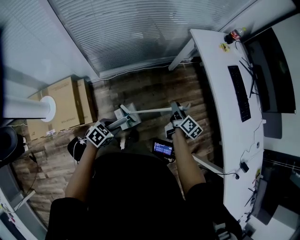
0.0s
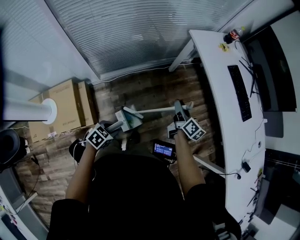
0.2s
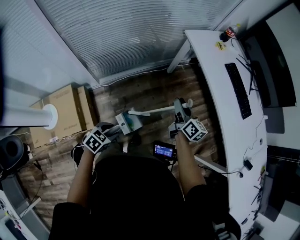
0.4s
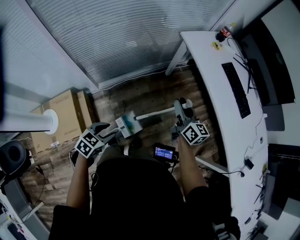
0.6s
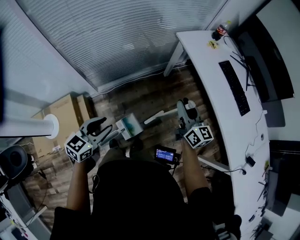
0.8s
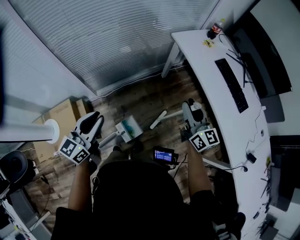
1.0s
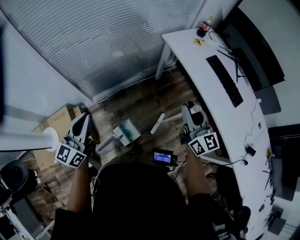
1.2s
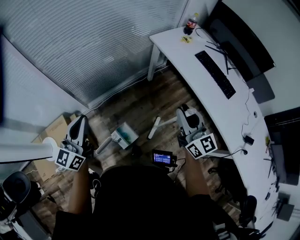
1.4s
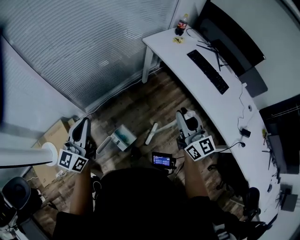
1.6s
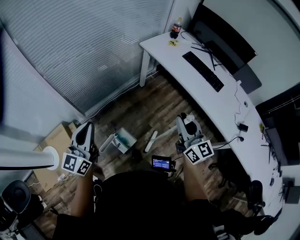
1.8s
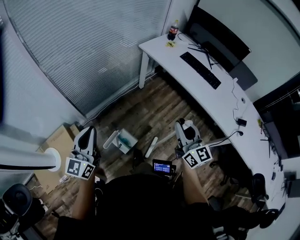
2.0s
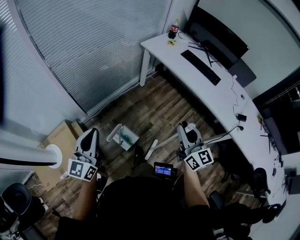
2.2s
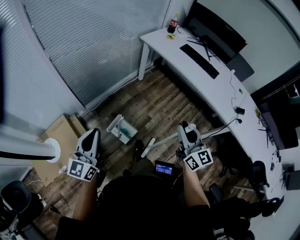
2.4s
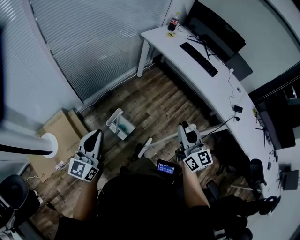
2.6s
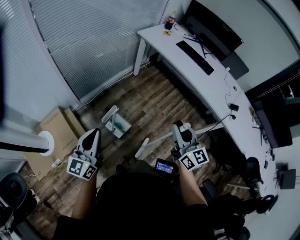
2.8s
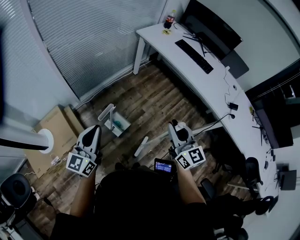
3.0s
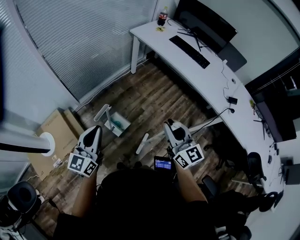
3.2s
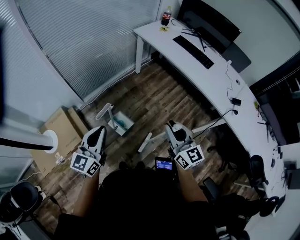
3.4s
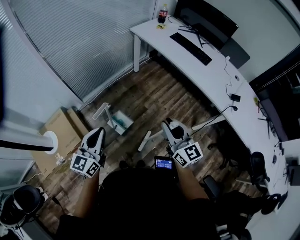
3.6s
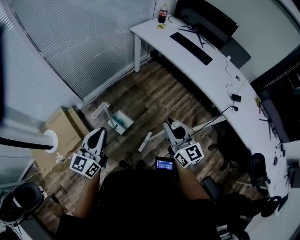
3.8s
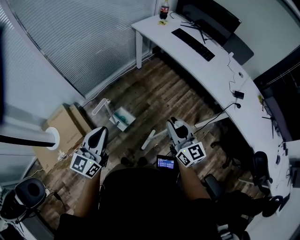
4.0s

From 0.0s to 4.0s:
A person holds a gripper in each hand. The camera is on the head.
From 0.0s to 1.4s: Both grippers move upward, approximately 30 cm. The right gripper twists approximately 50 degrees counterclockwise, seen from behind. Meanwhile the left gripper tips its fingers upward by some 60 degrees, and closes up.
From 1.4s to 2.6s: Both grippers move backward, some 25 cm.
From 2.6s to 4.0s: The left gripper goes about 15 cm to the right. Meanwhile the right gripper is displaced to the right by roughly 5 cm.

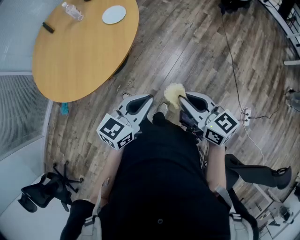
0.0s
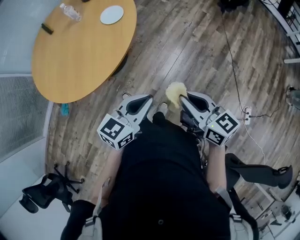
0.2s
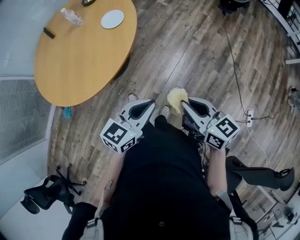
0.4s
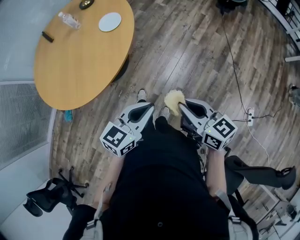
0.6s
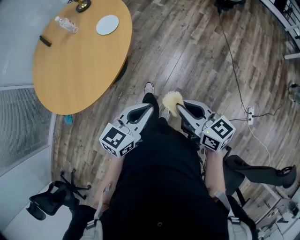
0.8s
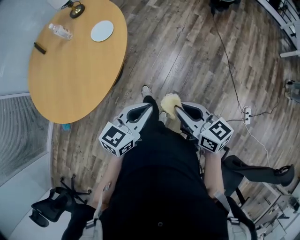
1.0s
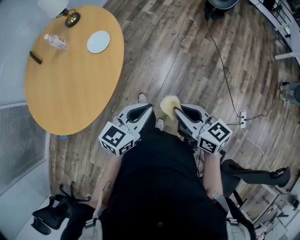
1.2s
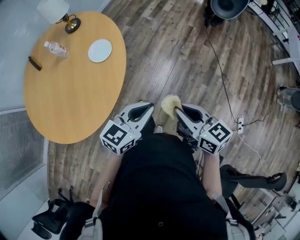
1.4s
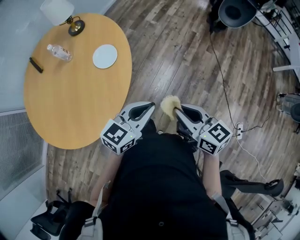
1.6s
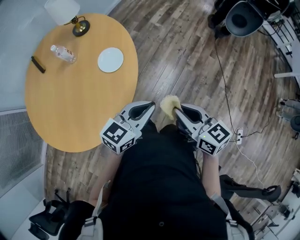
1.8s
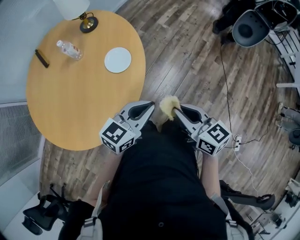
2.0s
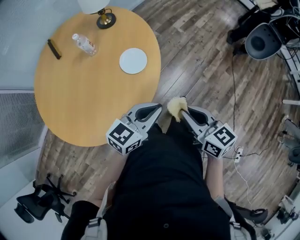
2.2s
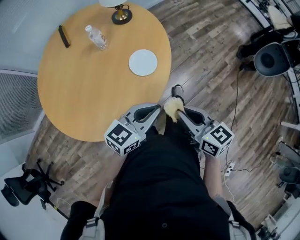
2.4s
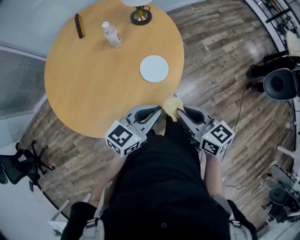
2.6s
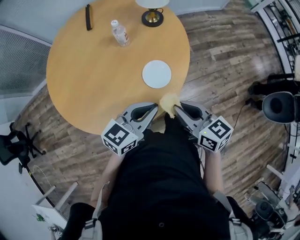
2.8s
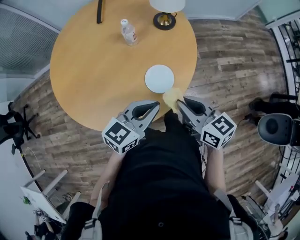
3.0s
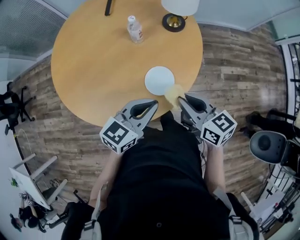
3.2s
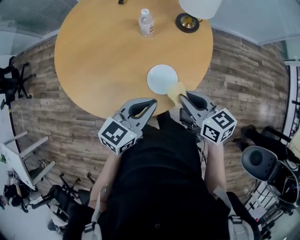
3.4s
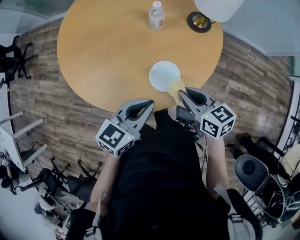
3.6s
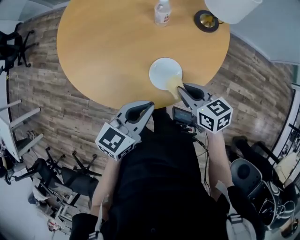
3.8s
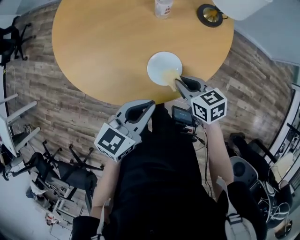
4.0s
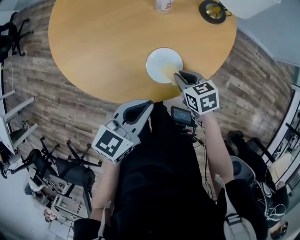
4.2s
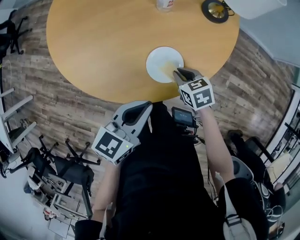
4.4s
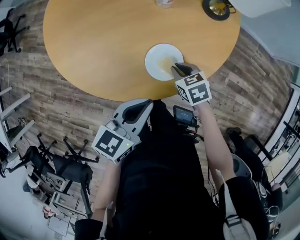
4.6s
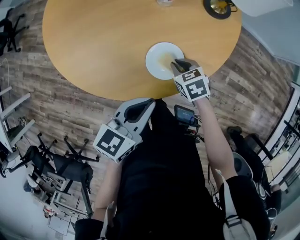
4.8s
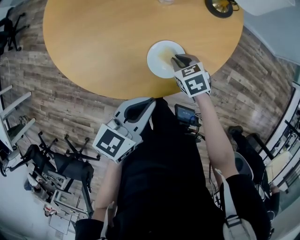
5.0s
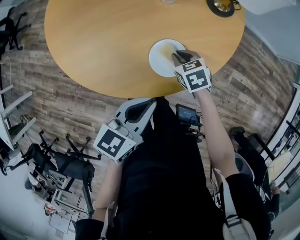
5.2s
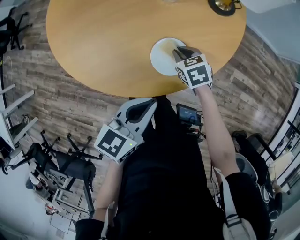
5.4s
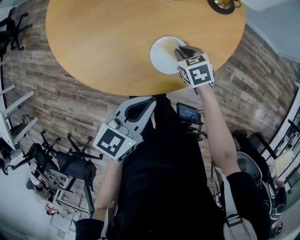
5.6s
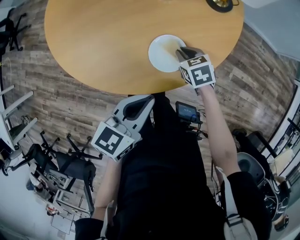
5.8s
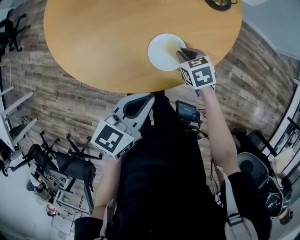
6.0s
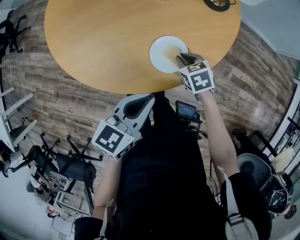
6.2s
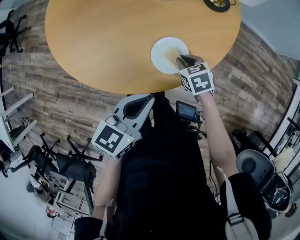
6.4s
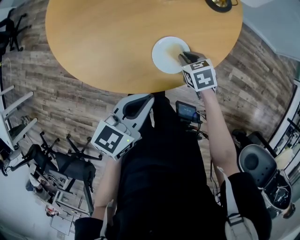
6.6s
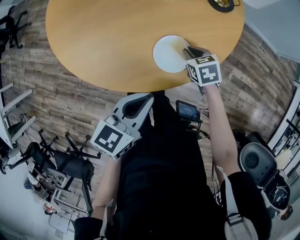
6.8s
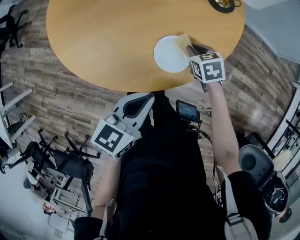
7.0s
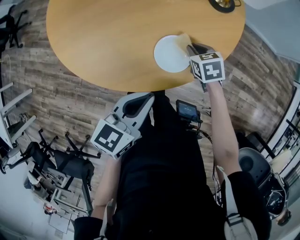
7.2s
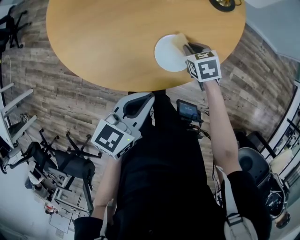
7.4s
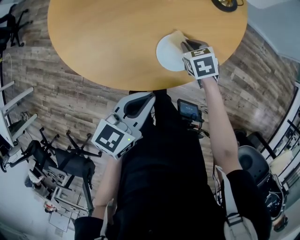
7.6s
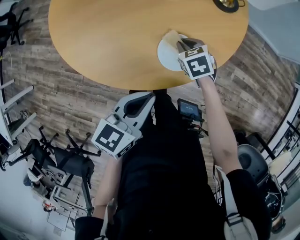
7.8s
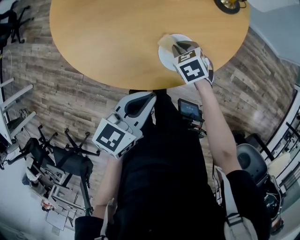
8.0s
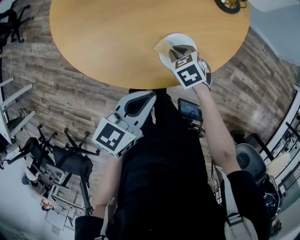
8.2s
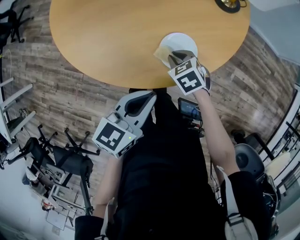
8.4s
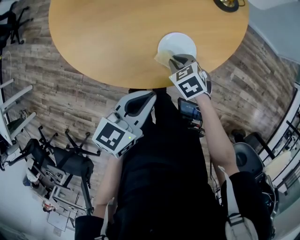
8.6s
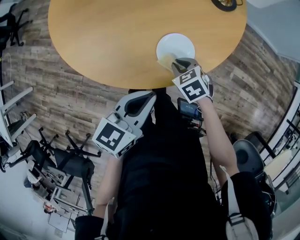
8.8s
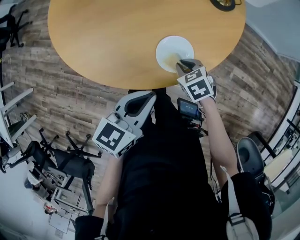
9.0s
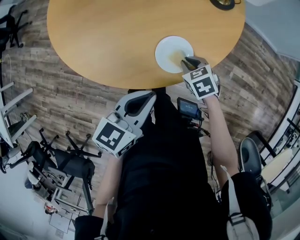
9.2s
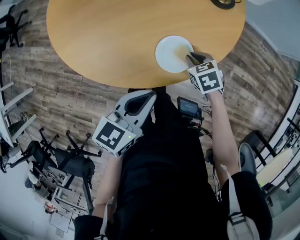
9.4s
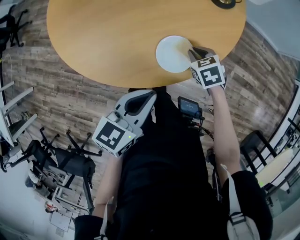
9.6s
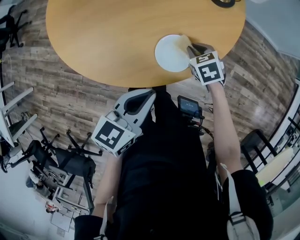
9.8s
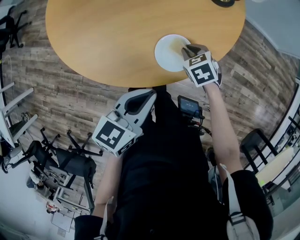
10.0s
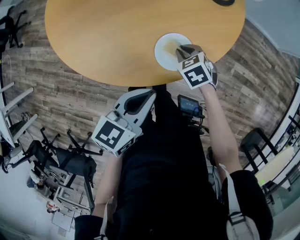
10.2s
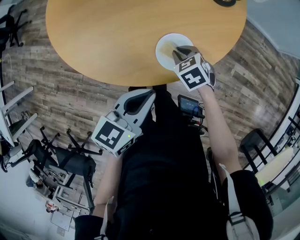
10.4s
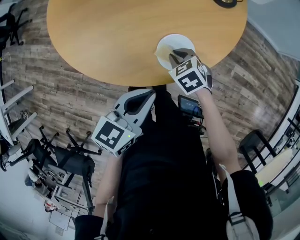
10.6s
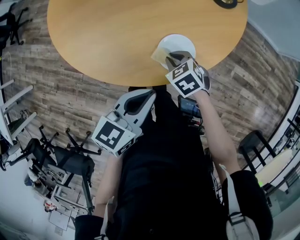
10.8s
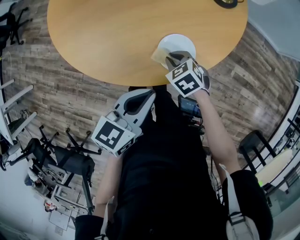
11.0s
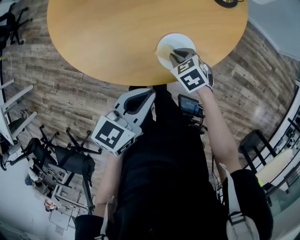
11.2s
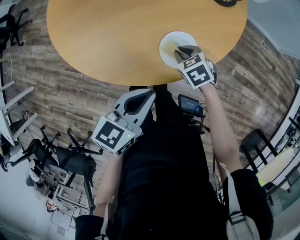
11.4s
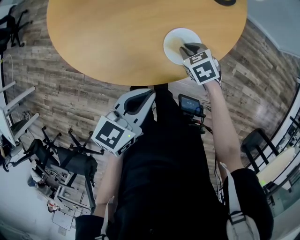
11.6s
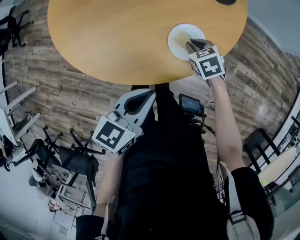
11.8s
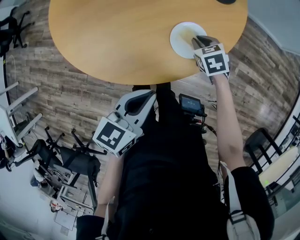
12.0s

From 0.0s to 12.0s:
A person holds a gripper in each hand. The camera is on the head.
From 0.0s to 1.6s: Both grippers move forward, roughly 20 cm.
From 1.6s to 3.0s: The left gripper changes place by roughly 25 cm, and rotates roughly 50 degrees. Meanwhile the right gripper ends up roughly 35 cm from where it was, and rotates some 50 degrees.
From 3.0s to 4.4s: The right gripper shifts approximately 25 cm downward, and angles its fingers downward, by some 40 degrees. The left gripper moves downward, approximately 10 cm, and turns by about 40 degrees.
From 4.4s to 6.0s: The grippers move only a little.
From 6.0s to 7.6s: The grippers move only a little.
From 7.6s to 9.0s: The right gripper goes roughly 10 cm backward.
From 10.4s to 12.0s: The right gripper goes about 5 cm to the right.

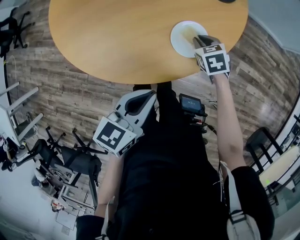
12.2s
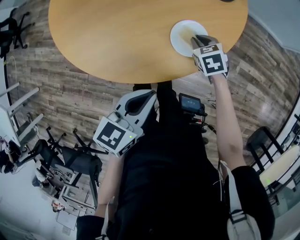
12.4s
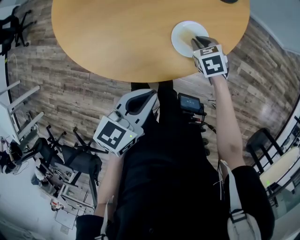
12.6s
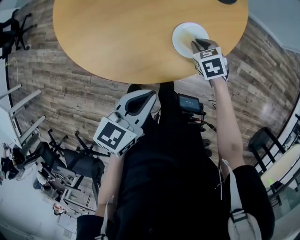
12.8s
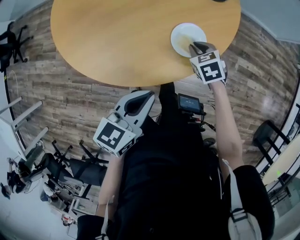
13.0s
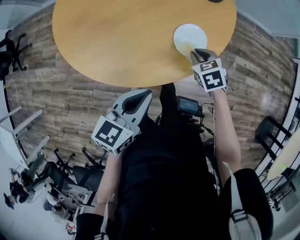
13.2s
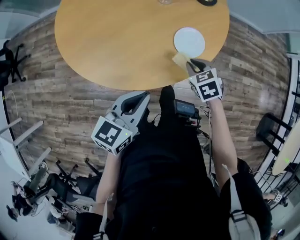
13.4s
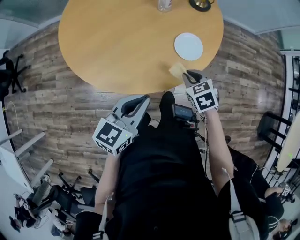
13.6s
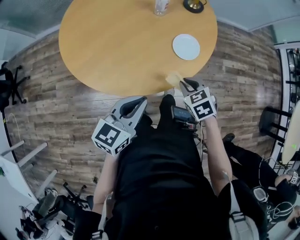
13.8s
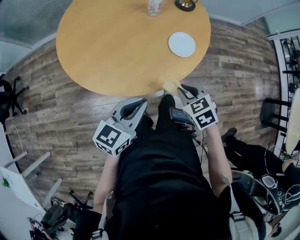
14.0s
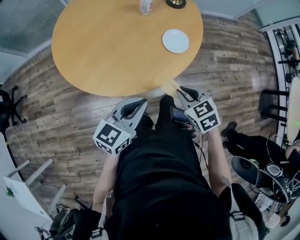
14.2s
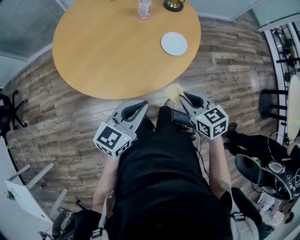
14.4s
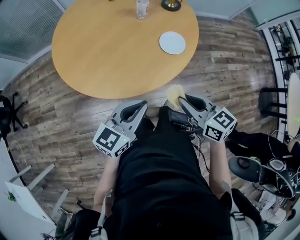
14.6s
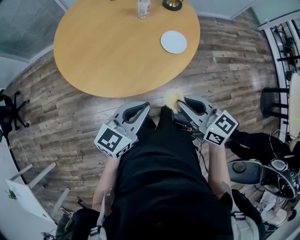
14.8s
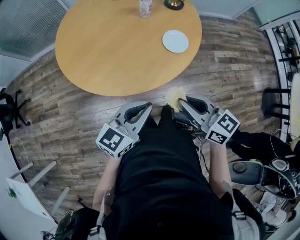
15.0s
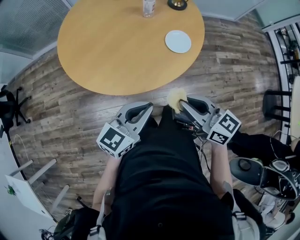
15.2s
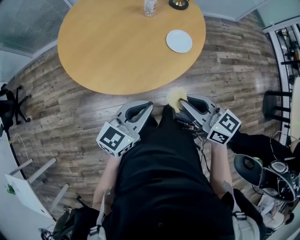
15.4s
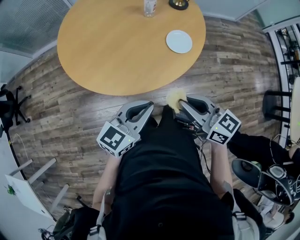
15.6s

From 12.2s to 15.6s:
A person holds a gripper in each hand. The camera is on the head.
From 12.2s to 13.8s: The left gripper heads to the left and backward, covering approximately 20 cm, and turns by roughly 20 degrees. The right gripper travels backward, upward and to the left by approximately 30 cm.
From 13.8s to 15.6s: The left gripper travels backward by about 5 cm, while the right gripper goes roughly 20 cm upward and backward, and points its fingers roughly 40 degrees further upward.

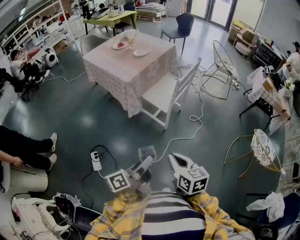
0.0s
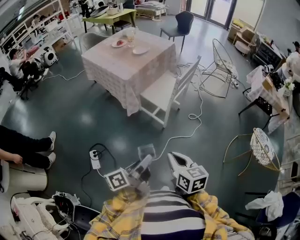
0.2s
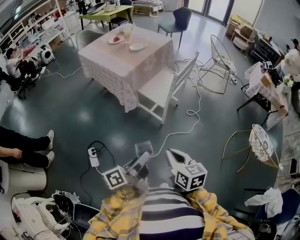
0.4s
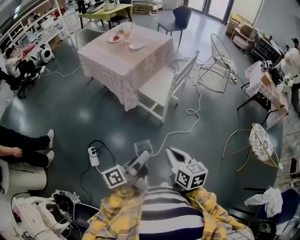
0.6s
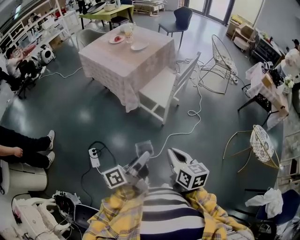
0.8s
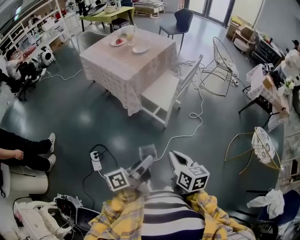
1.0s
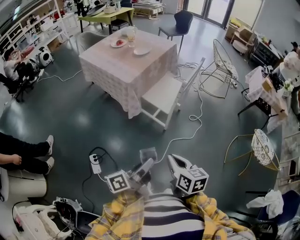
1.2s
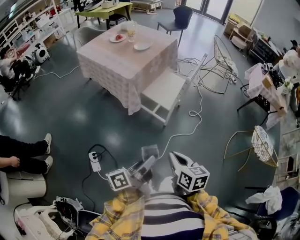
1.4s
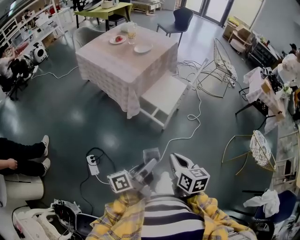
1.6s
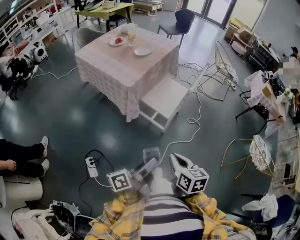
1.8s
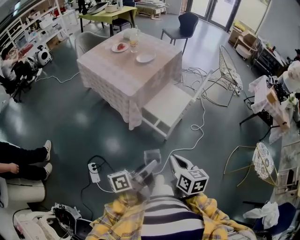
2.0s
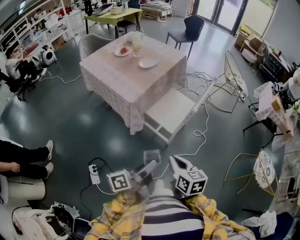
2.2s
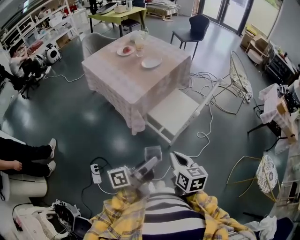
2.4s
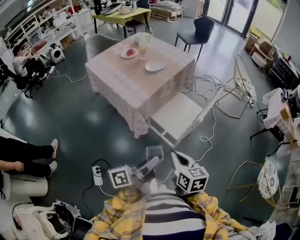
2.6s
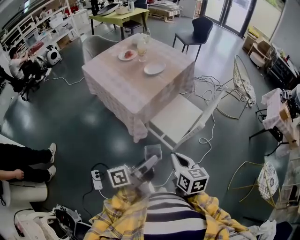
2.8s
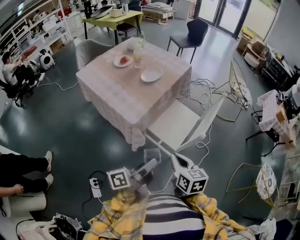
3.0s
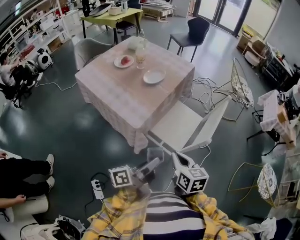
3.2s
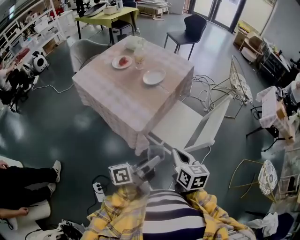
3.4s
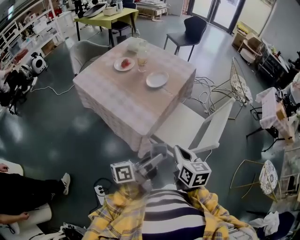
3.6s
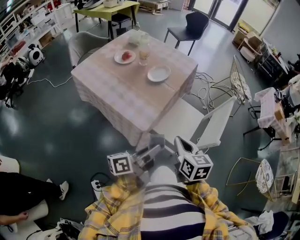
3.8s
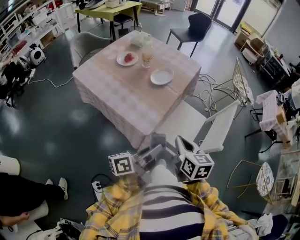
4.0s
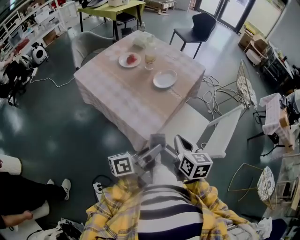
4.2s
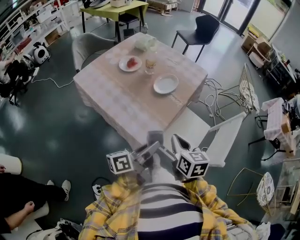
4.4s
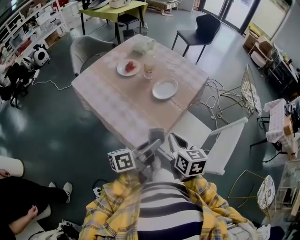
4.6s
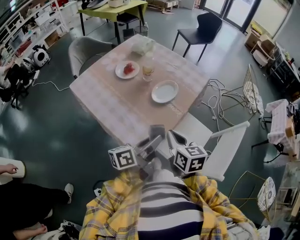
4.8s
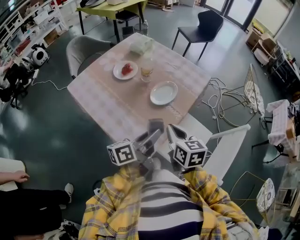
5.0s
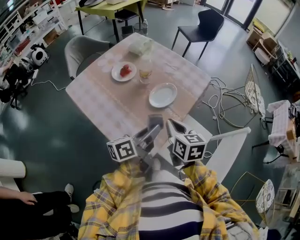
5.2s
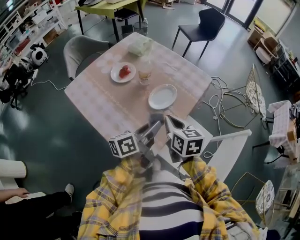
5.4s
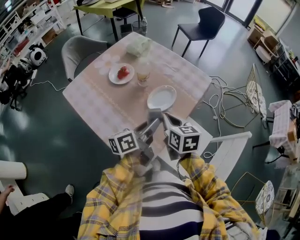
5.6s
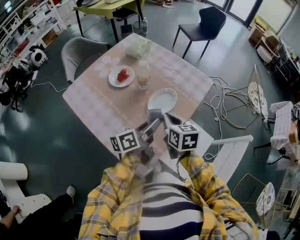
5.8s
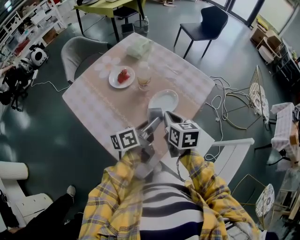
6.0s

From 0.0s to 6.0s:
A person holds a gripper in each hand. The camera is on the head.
From 0.0s to 1.6s: The two grippers go some 10 cm forward and to the left.
From 1.6s to 3.0s: The grippers both shift forward by some 25 cm.
From 3.0s to 4.4s: Both grippers move forward and to the left, approximately 25 cm.
From 4.4s to 6.0s: Both grippers travel together forward, roughly 25 cm.
